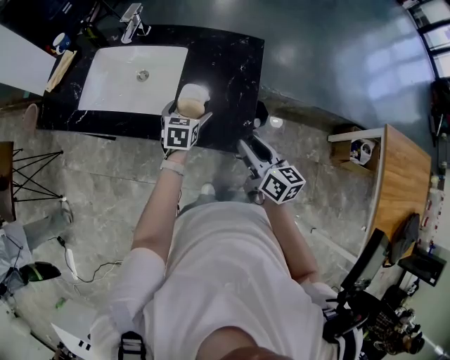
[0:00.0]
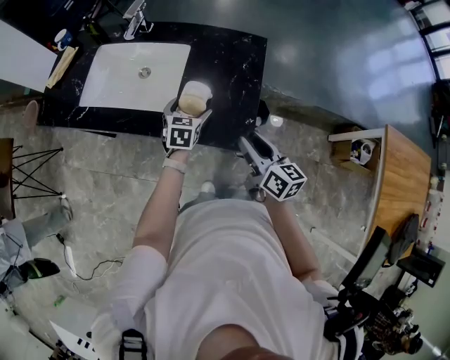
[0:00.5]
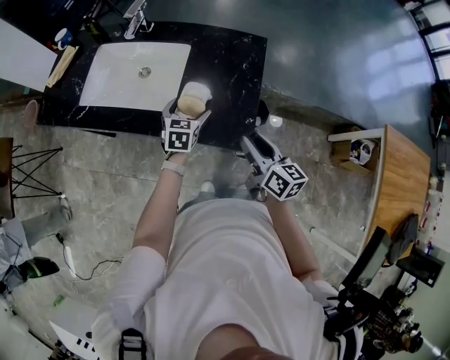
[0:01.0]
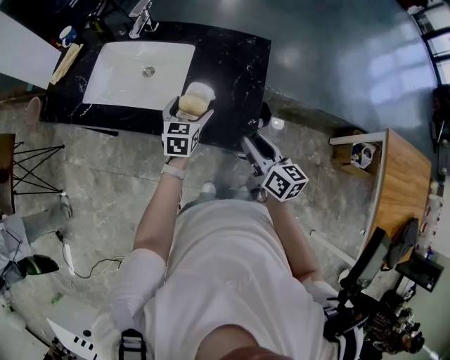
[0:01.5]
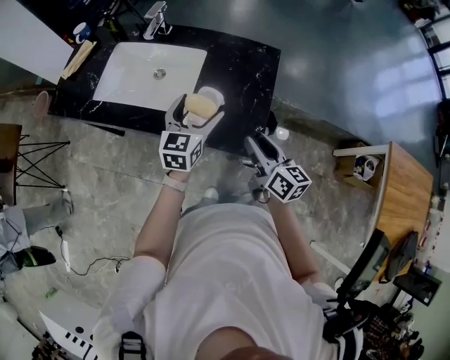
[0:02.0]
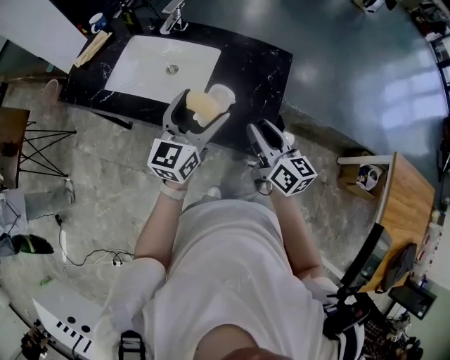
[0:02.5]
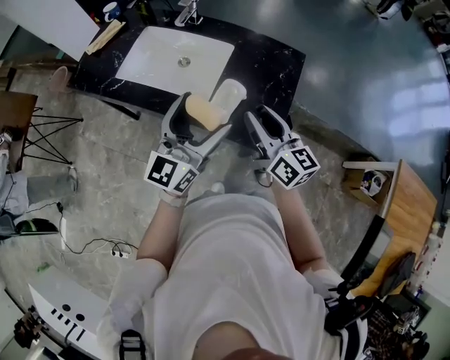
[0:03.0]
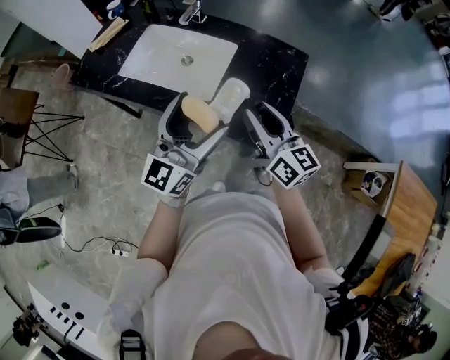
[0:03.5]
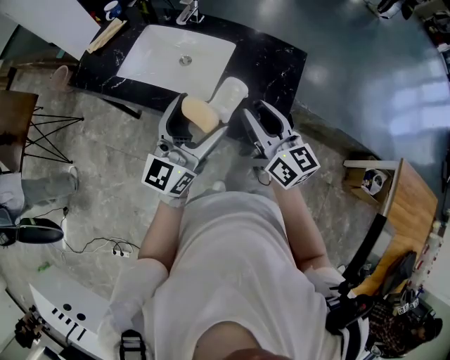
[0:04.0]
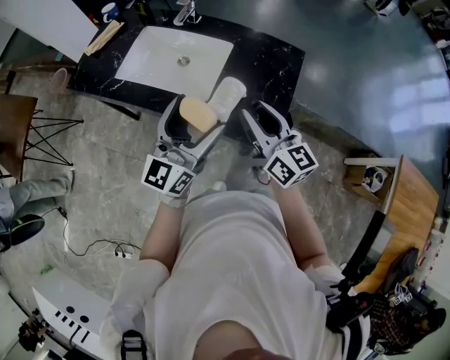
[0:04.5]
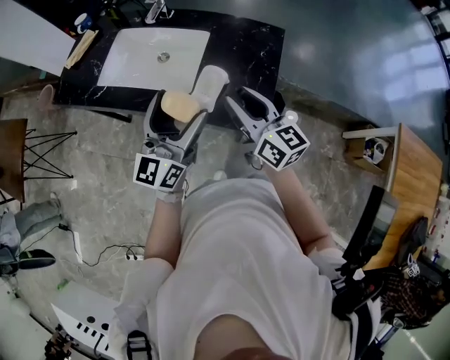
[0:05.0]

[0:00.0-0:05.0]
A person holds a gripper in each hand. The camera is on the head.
0:00.0 to 0:02.5: The right gripper goes some 5 cm upward; the left gripper goes roughly 20 cm upward, and tips its fingers upward by roughly 40 degrees.
0:02.5 to 0:05.0: The right gripper changes place by roughly 5 cm, while the left gripper goes roughly 5 cm backward.

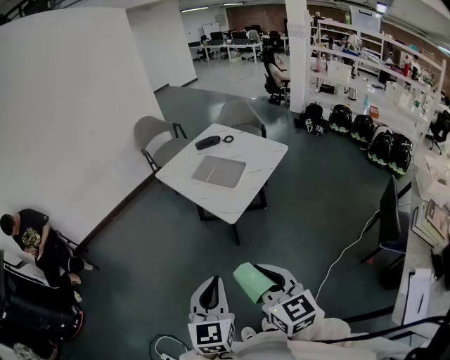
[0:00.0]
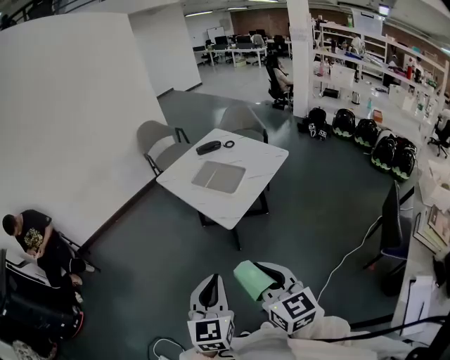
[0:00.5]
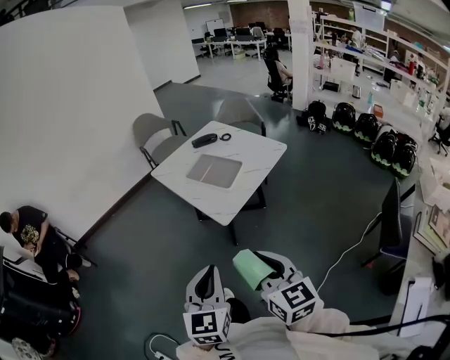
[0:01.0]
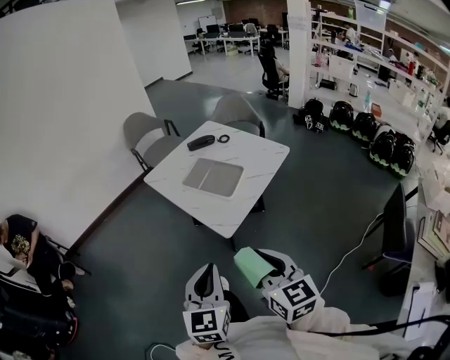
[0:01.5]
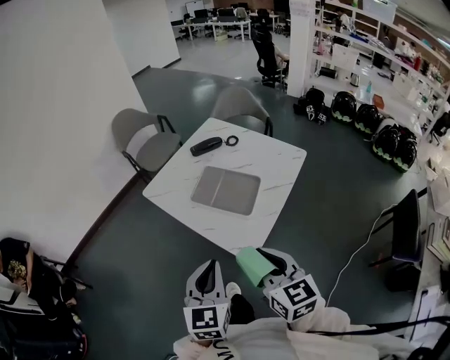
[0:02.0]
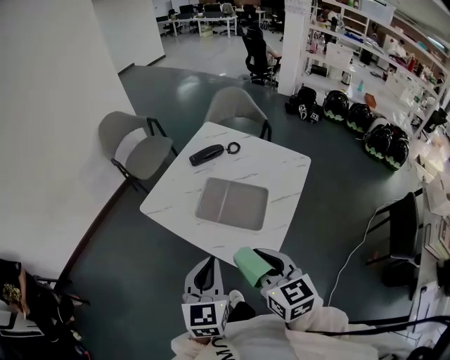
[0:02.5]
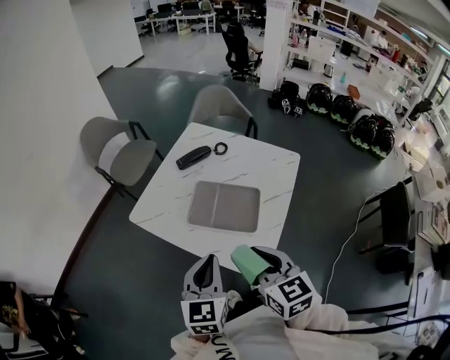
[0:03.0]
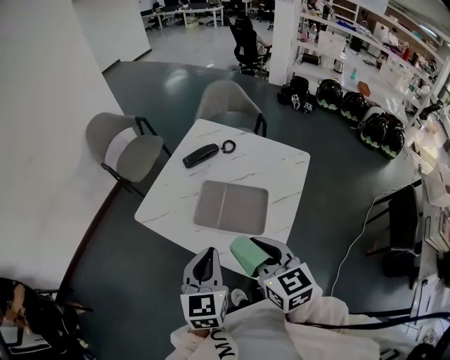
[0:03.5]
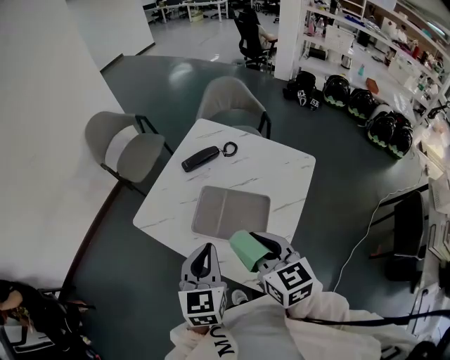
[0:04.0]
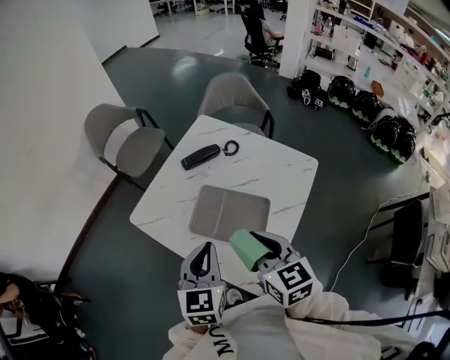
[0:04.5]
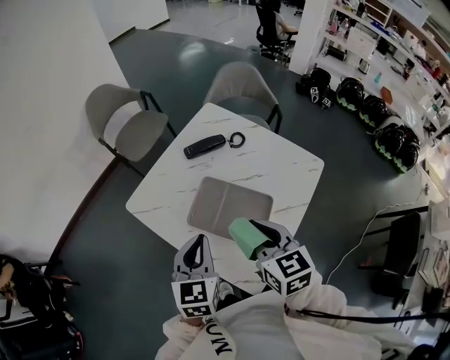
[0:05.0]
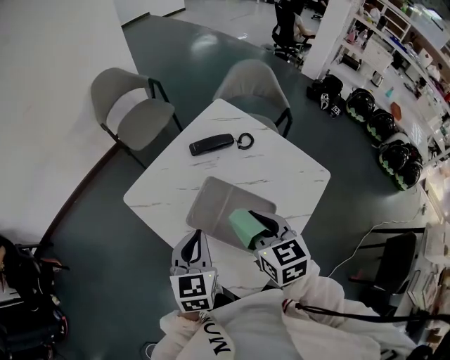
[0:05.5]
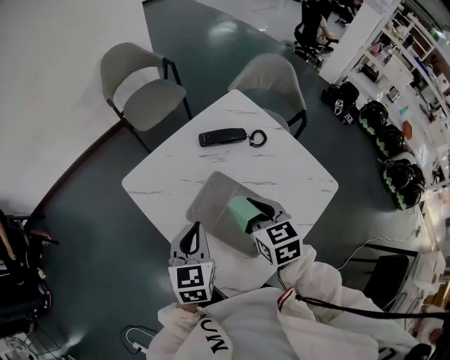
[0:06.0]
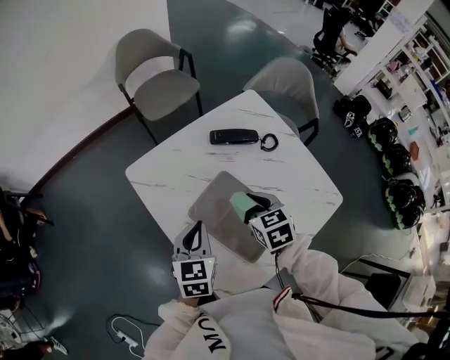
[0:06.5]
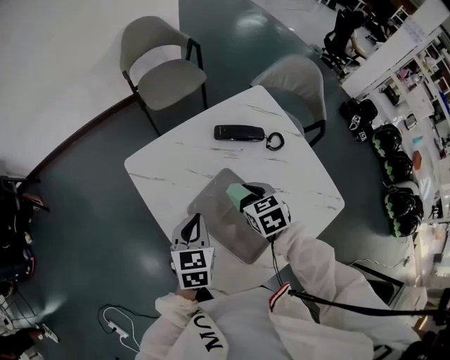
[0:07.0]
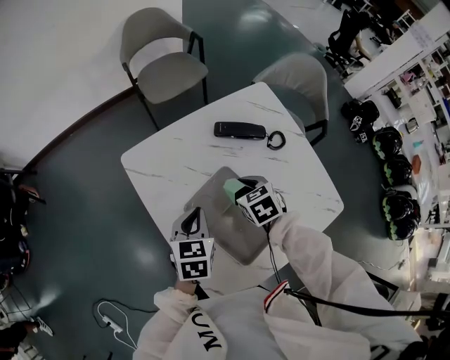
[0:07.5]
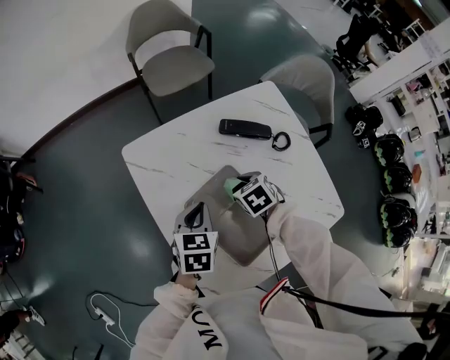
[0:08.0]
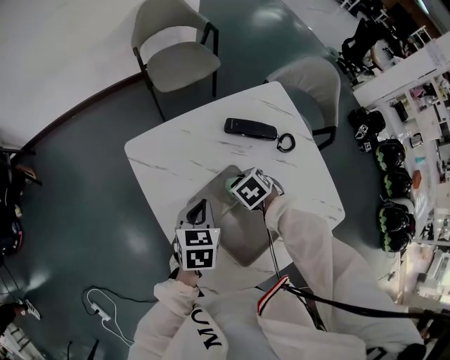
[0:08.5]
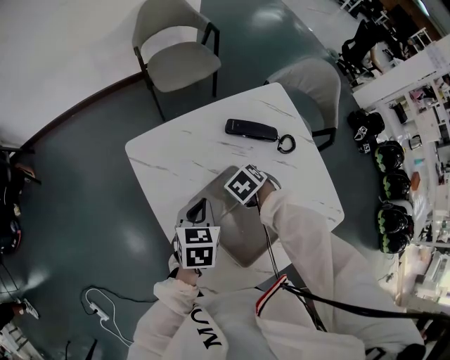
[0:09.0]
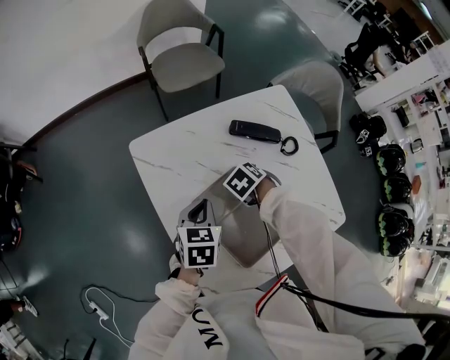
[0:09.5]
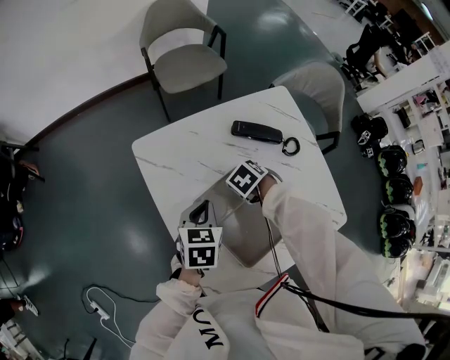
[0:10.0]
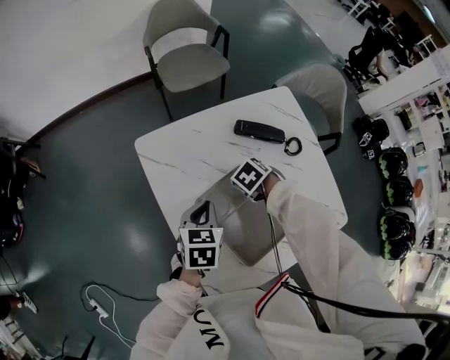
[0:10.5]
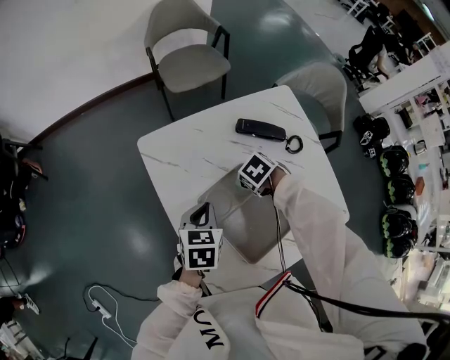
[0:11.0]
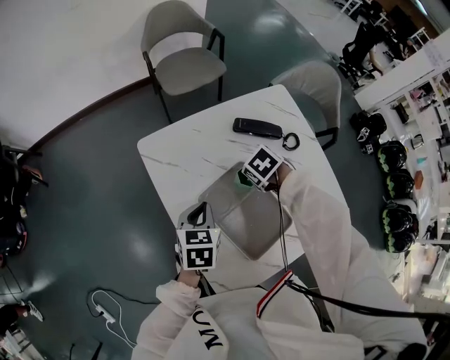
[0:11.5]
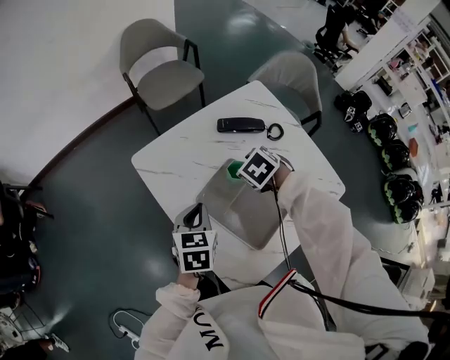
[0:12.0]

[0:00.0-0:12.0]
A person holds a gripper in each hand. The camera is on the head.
0:00.0 to 0:02.0: The two grippers go some 35 cm forward.
0:02.0 to 0:04.0: The two grippers go about 25 cm forward.
0:04.0 to 0:06.0: The grippers both shift forward and downward by approximately 15 cm. The left gripper swivels roughly 20 degrees. Meanwhile the right gripper turns by approximately 30 degrees.
0:06.0 to 0:08.0: The left gripper is displaced downward and forward by approximately 10 cm. The right gripper heads downward and forward, covering approximately 20 cm, and rotates roughly 40 degrees.
0:08.0 to 0:10.0: The right gripper turns by some 20 degrees.
0:10.0 to 0:12.0: The right gripper shifts roughly 10 cm upward, and opens up. The left gripper moves about 5 cm.

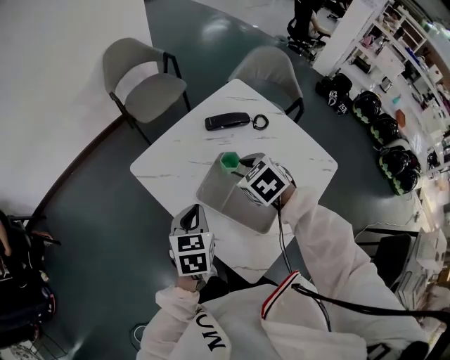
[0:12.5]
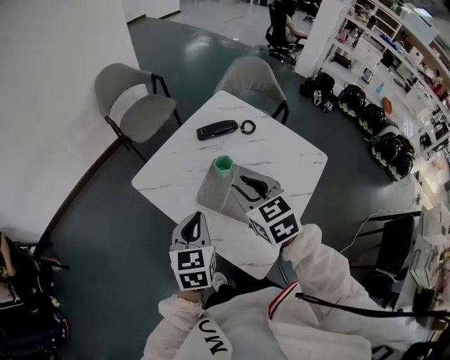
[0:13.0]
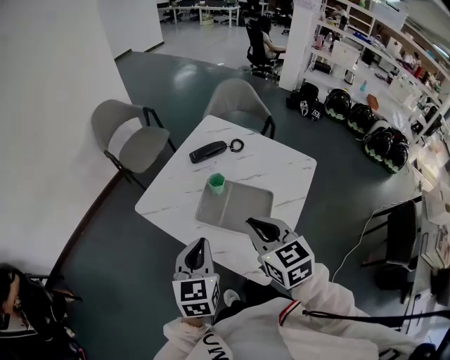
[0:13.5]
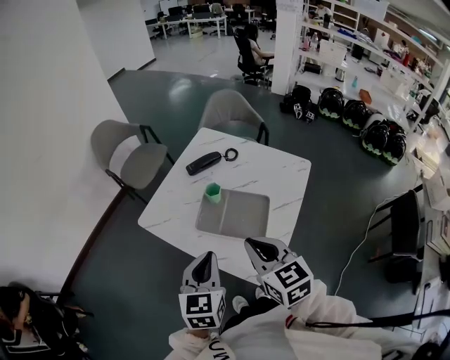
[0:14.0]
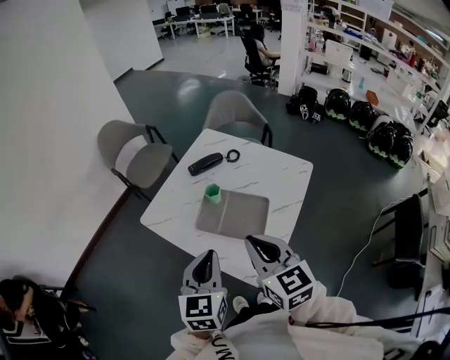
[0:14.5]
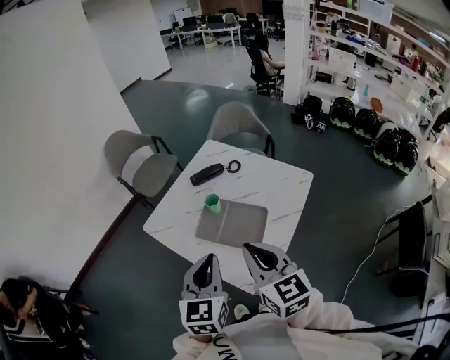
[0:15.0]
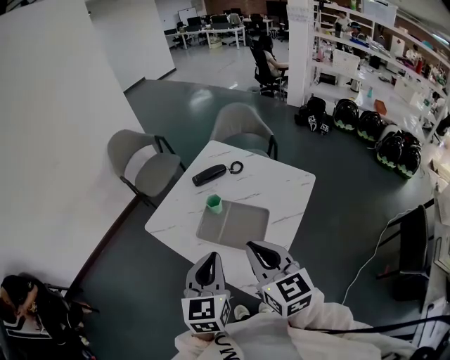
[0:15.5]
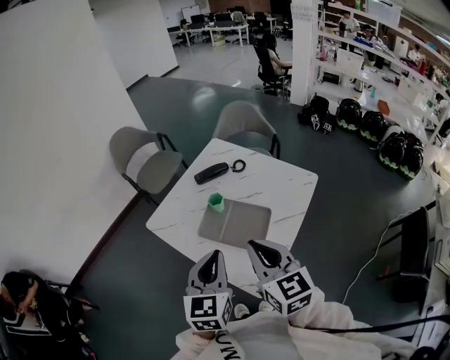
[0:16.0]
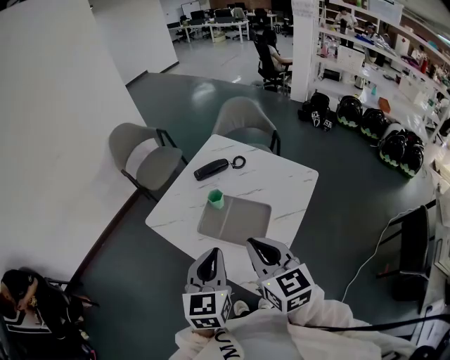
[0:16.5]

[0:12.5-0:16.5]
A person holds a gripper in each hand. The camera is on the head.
0:12.5 to 0:14.5: The left gripper goes some 20 cm upward, backward and to the right, and turns by about 20 degrees, while the right gripper is displaced backward and upward by about 30 cm, tips its fingers upward by about 40 degrees, and closes its fingers.
0:14.5 to 0:16.5: The grippers move only a little.

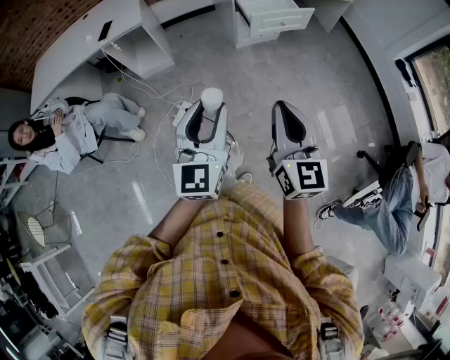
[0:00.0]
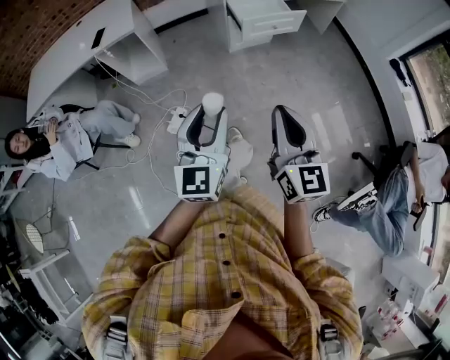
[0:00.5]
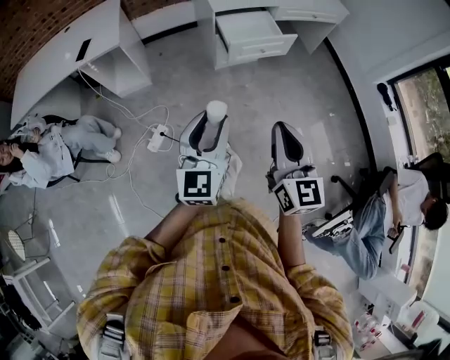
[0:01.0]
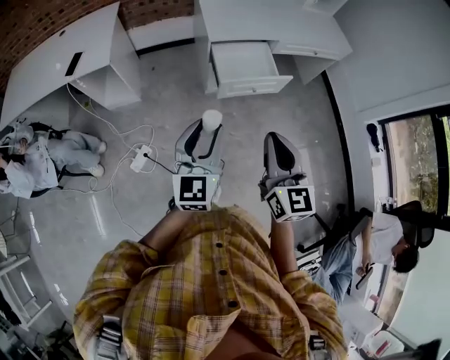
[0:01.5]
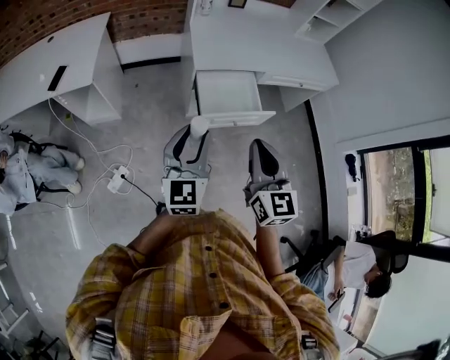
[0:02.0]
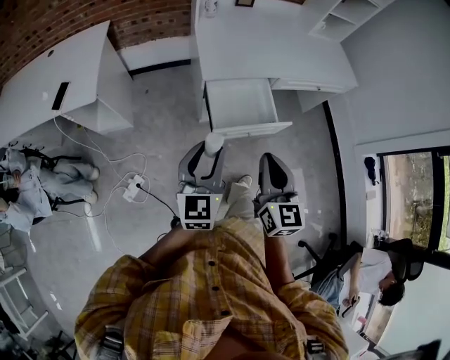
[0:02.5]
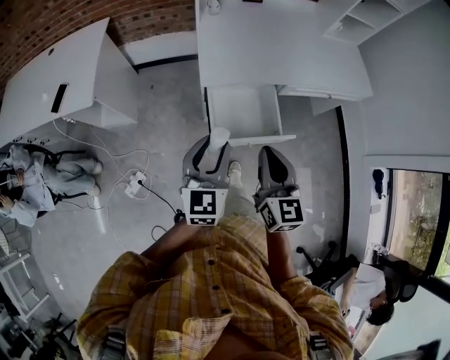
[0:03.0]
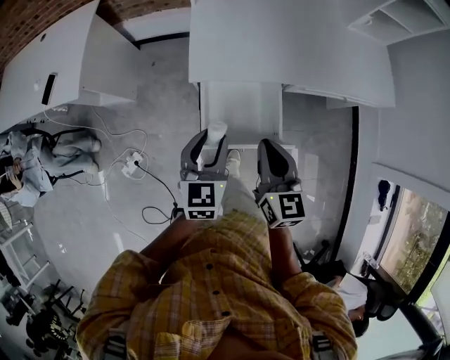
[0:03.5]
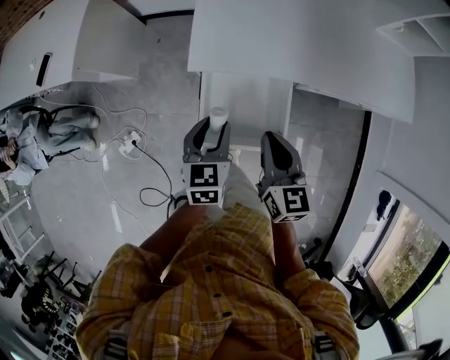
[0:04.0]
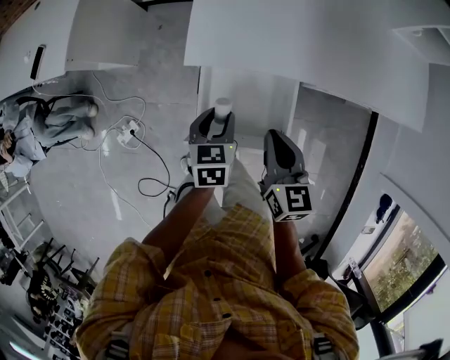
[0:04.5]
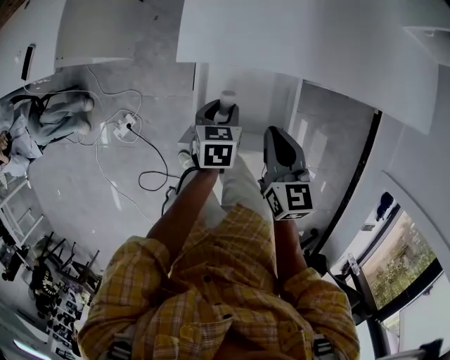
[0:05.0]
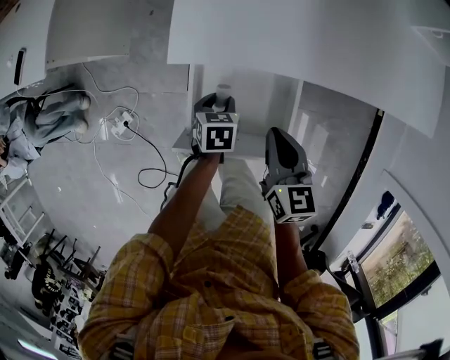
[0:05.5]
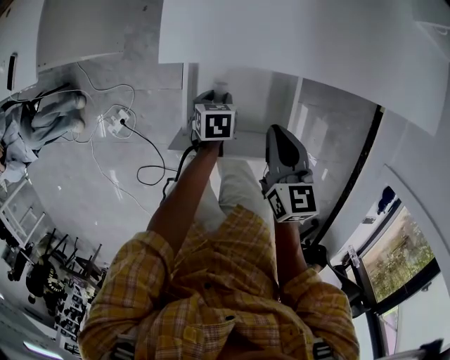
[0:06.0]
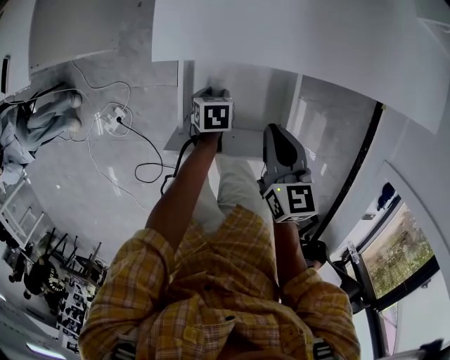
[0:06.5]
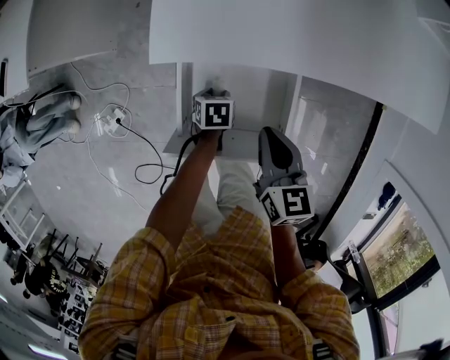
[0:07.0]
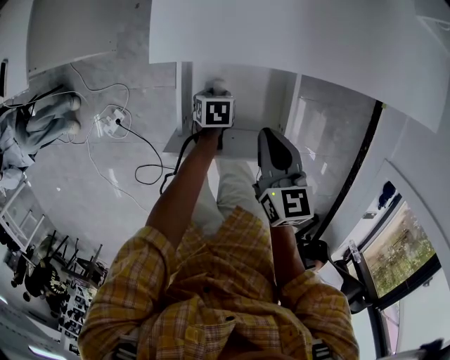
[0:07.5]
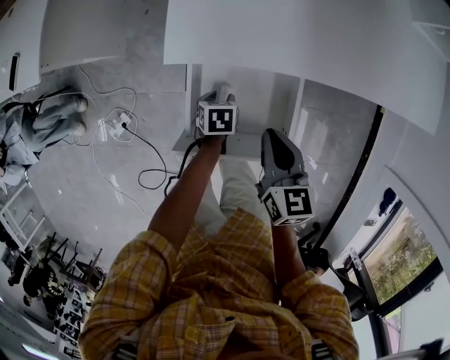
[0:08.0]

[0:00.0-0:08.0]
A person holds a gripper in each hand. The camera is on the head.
0:00.0 to 0:02.0: Both grippers are carried forward, about 50 cm.
0:02.0 to 0:04.0: Both grippers travel together forward, downward and to the right, some 40 cm. The left gripper tips its fingers downward by roughly 30 degrees, while the right gripper rotates some 30 degrees.
0:04.0 to 0:06.0: The left gripper shifts approximately 25 cm downward, and tips its fingers downward by roughly 30 degrees. Meanwhile the right gripper travels downward by about 15 cm.
